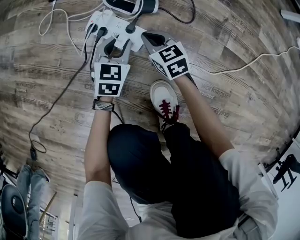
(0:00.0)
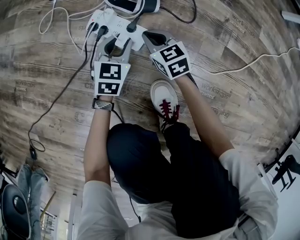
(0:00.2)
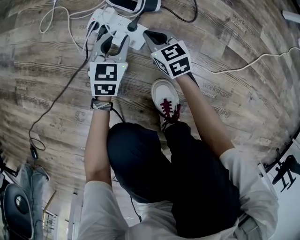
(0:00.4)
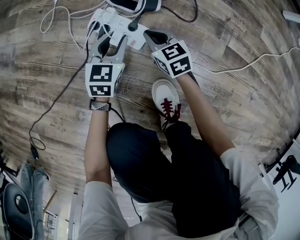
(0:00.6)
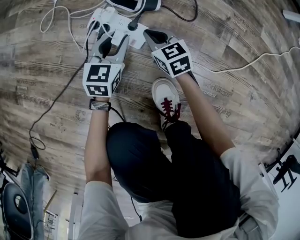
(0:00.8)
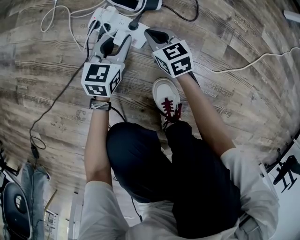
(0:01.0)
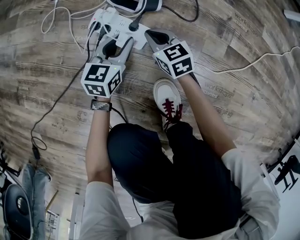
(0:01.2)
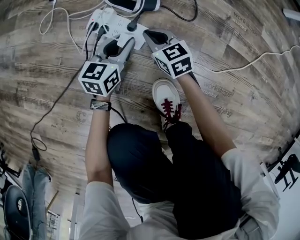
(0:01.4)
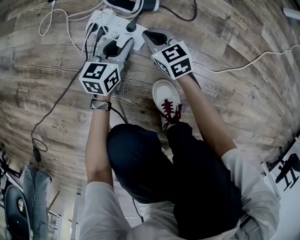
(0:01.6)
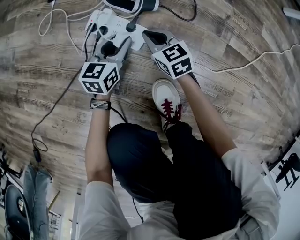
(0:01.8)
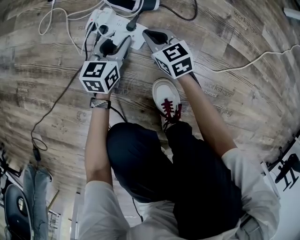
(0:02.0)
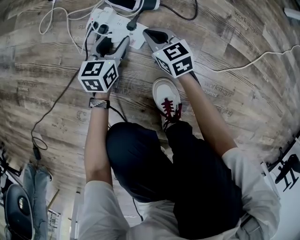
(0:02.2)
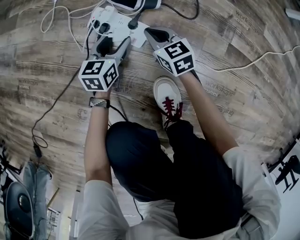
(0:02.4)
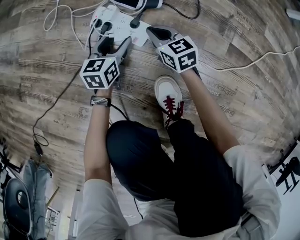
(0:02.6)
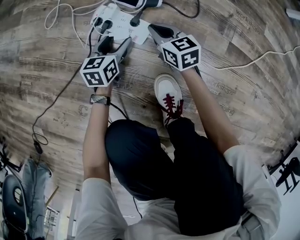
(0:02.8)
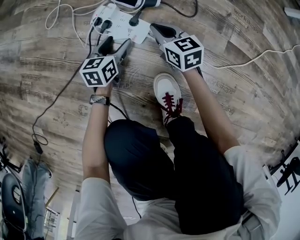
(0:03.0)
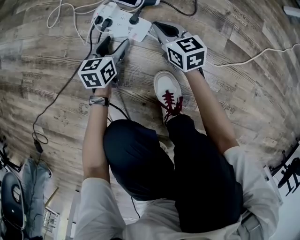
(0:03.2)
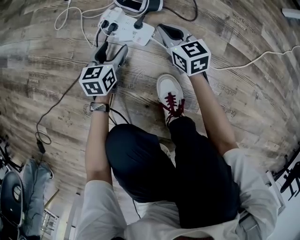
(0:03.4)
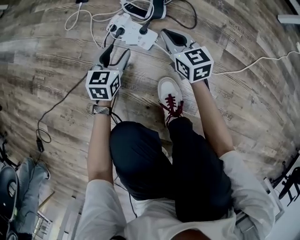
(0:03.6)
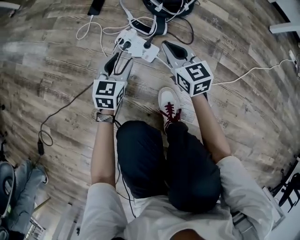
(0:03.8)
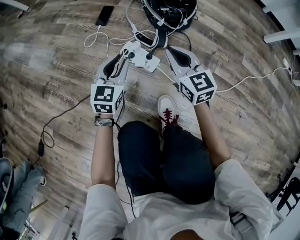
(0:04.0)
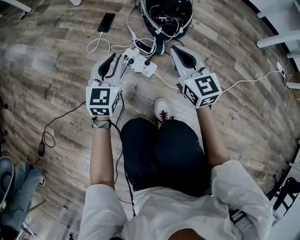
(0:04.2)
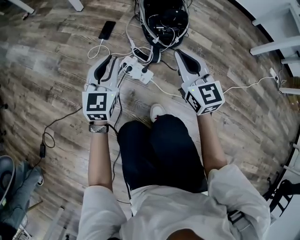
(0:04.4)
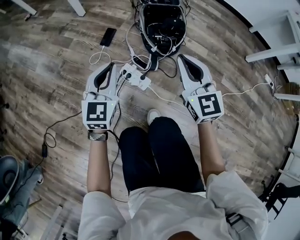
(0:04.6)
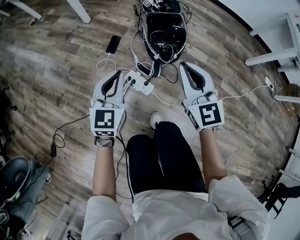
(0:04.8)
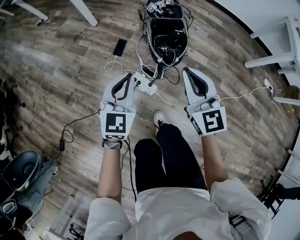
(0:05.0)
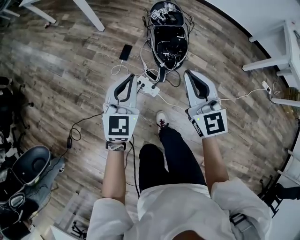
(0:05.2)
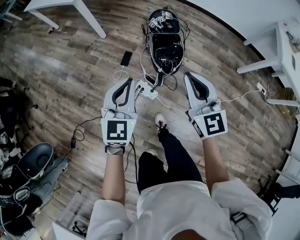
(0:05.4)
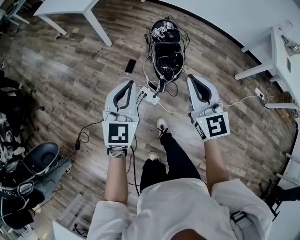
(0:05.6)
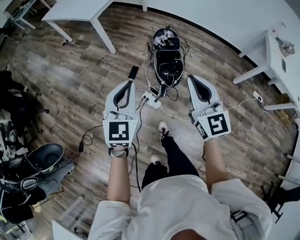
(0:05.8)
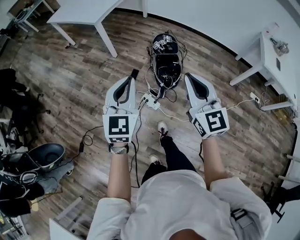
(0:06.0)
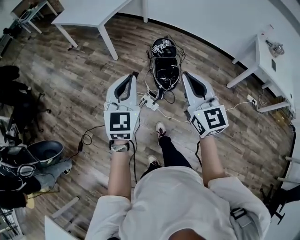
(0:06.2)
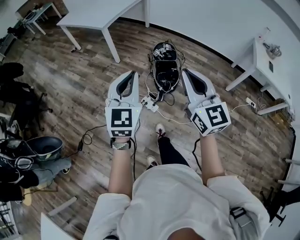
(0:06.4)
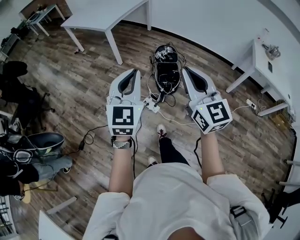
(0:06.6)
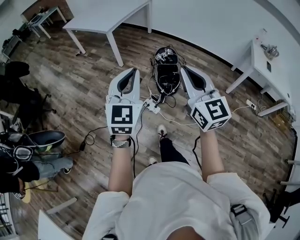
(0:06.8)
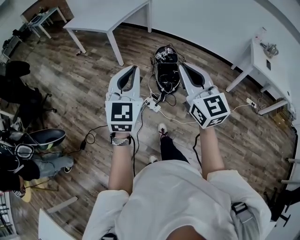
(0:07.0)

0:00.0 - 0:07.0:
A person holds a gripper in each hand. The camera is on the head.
0:00.0 - 0:01.4: The left gripper rotates roughly 30 degrees.
0:01.4 - 0:02.8: The left gripper shifts by roughly 5 cm, and opens up.
0:02.8 - 0:04.2: Both grippers travel together upward, about 35 cm. The right gripper changes its angle by about 30 degrees. The left gripper turns by approximately 40 degrees, and closes.
0:04.2 - 0:05.6: Both grippers travel together upward, about 60 cm.
0:05.6 - 0:07.0: The right gripper heads backward and upward, covering about 35 cm. Meanwhile the left gripper is displaced upward and backward by some 35 cm.

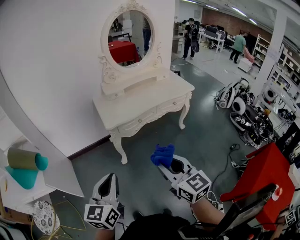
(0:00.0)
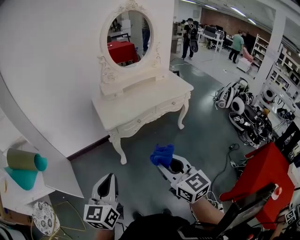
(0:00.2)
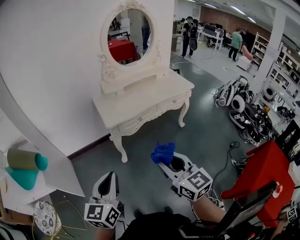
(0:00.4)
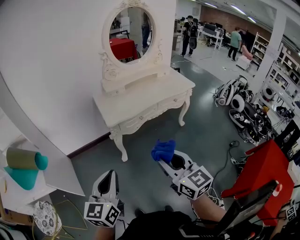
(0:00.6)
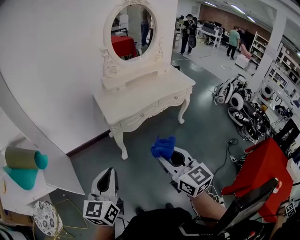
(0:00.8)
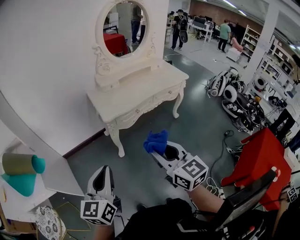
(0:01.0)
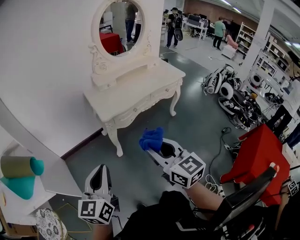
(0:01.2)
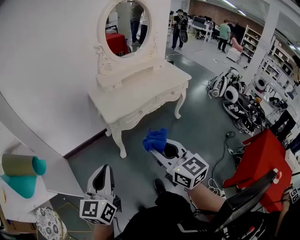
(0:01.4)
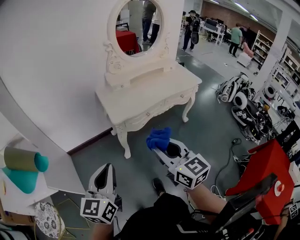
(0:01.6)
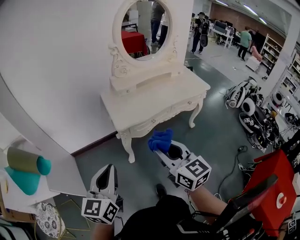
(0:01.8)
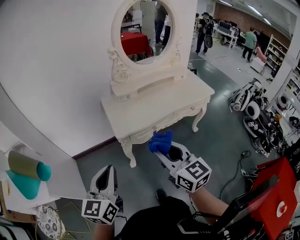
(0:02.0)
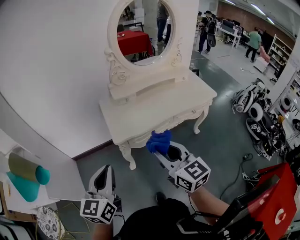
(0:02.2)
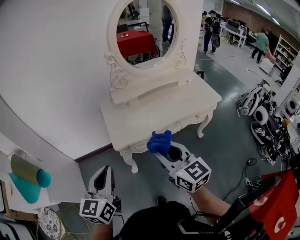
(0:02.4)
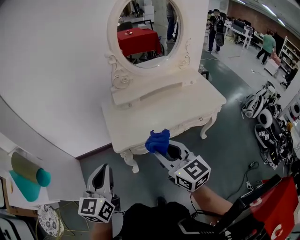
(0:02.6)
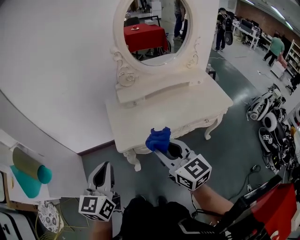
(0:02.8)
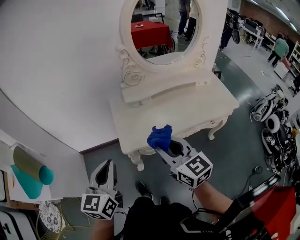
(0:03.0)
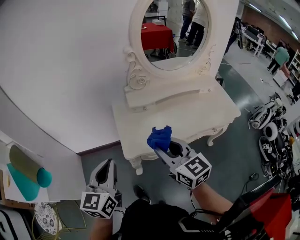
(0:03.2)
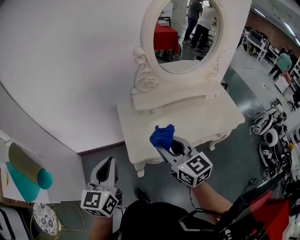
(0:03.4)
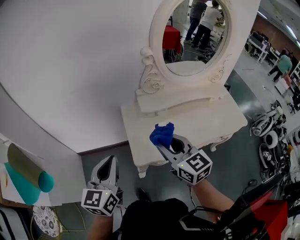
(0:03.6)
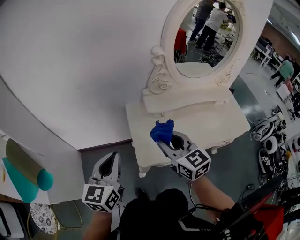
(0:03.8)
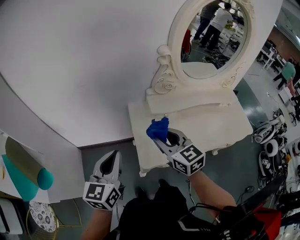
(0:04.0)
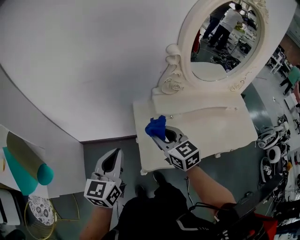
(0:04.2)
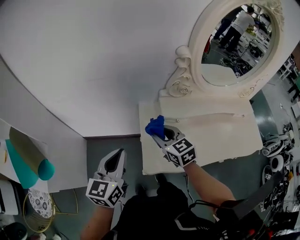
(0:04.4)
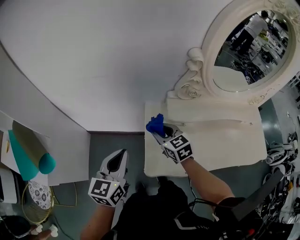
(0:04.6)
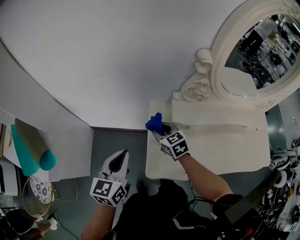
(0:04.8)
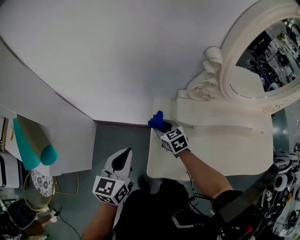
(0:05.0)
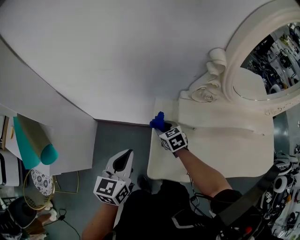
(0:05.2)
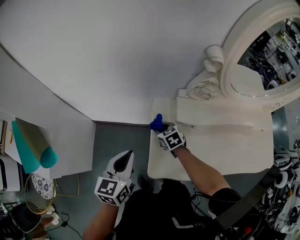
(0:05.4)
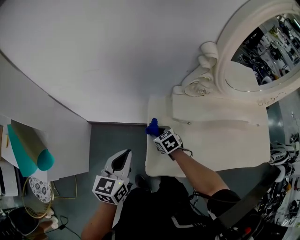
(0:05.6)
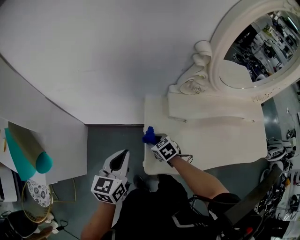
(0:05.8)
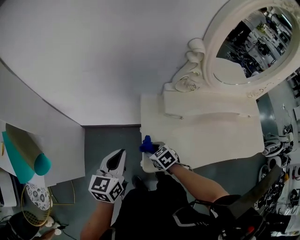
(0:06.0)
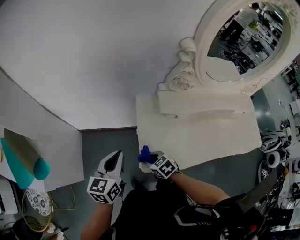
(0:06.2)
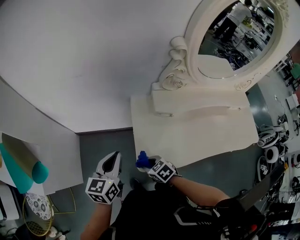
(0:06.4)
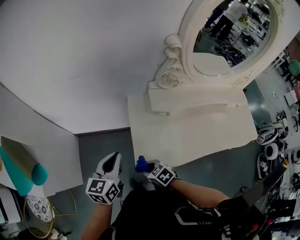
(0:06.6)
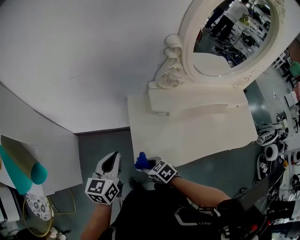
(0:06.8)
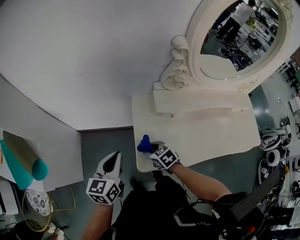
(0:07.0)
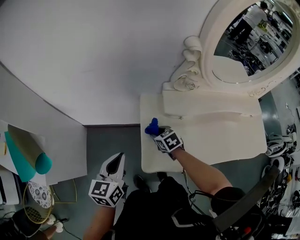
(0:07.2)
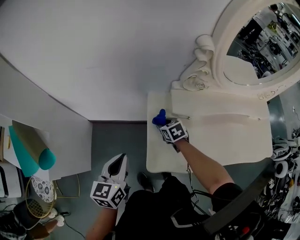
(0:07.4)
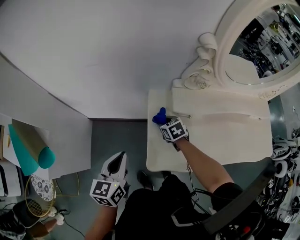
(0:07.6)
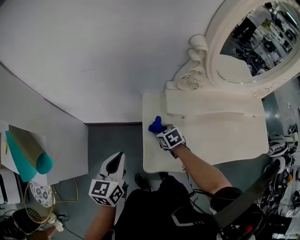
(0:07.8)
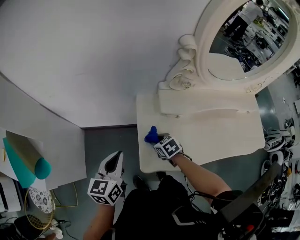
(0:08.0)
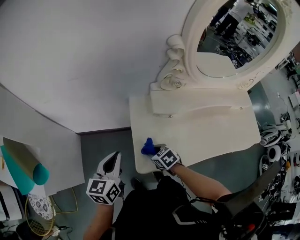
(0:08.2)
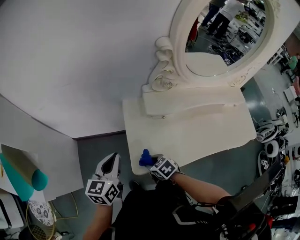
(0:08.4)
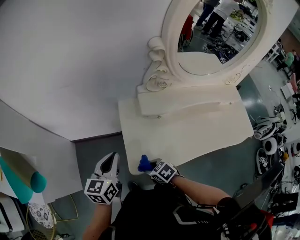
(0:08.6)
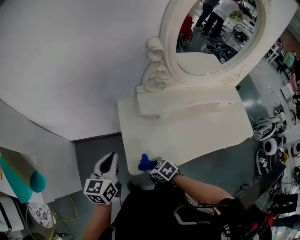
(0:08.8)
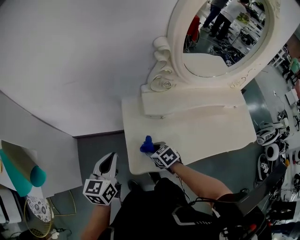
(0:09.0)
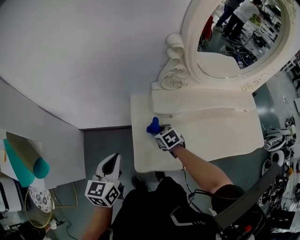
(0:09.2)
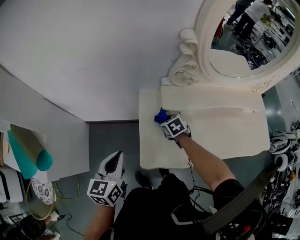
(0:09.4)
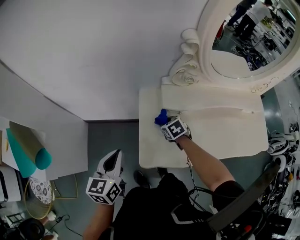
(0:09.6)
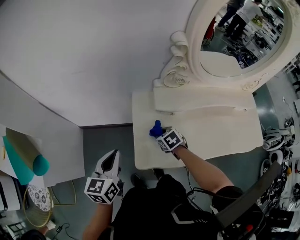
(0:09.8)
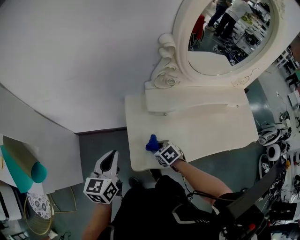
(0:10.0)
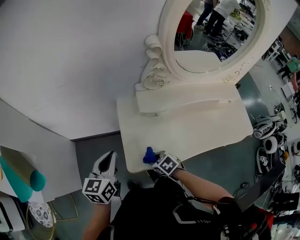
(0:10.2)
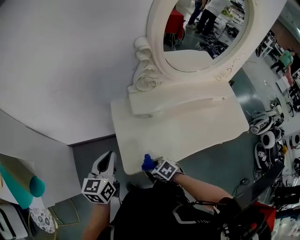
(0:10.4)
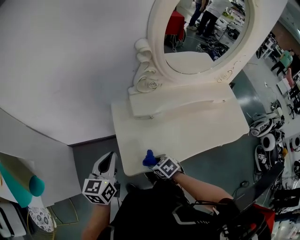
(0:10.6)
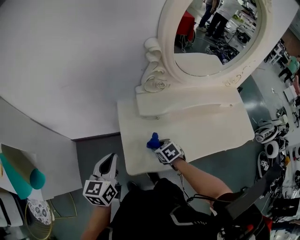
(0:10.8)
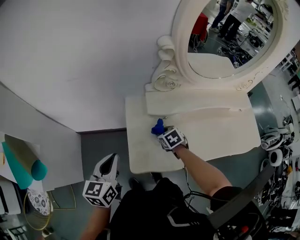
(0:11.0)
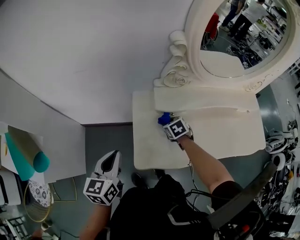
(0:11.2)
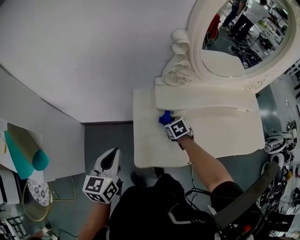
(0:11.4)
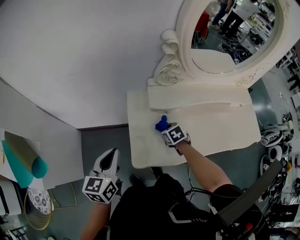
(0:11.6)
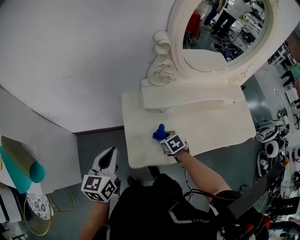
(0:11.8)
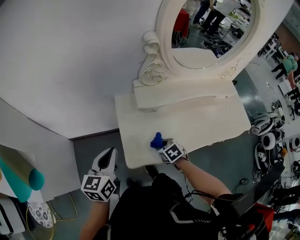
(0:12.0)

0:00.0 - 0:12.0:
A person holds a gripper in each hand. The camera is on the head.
0:00.0 - 0:01.6: The left gripper shifts about 10 cm to the left and forward. Meanwhile the right gripper heads forward and to the left, covering about 15 cm.
0:01.6 - 0:03.0: Both grippers move forward, about 30 cm.
0:03.0 - 0:04.4: The left gripper heads forward, covering roughly 20 cm, while the right gripper moves forward, to the left and downward, some 35 cm, and changes its angle by some 20 degrees.
0:04.4 - 0:06.0: The left gripper heads downward, covering roughly 10 cm, while the right gripper travels downward by roughly 20 cm, and turns by some 30 degrees.
0:06.0 - 0:07.6: The right gripper shifts roughly 15 cm forward and to the right.
0:07.6 - 0:09.0: The right gripper moves backward, some 15 cm.
0:09.0 - 0:10.4: The right gripper goes about 10 cm backward.
0:10.4 - 0:12.0: The right gripper moves to the right, roughly 5 cm, and travels forward and back again, approximately 20 cm each way.

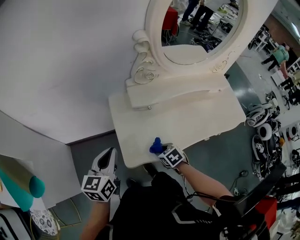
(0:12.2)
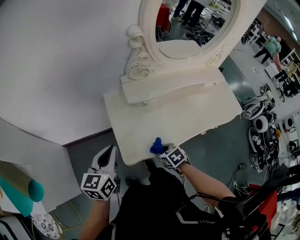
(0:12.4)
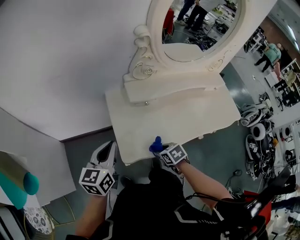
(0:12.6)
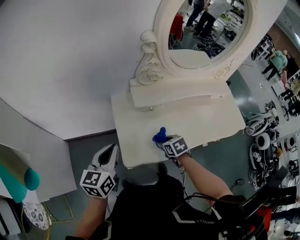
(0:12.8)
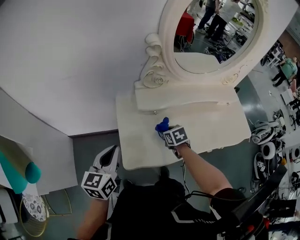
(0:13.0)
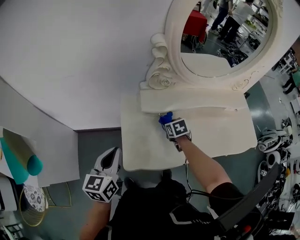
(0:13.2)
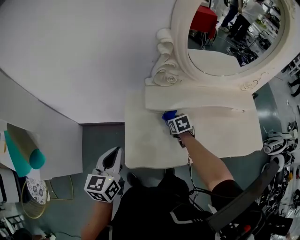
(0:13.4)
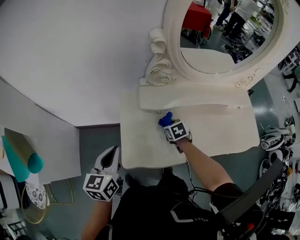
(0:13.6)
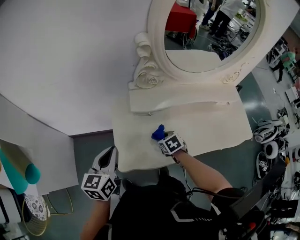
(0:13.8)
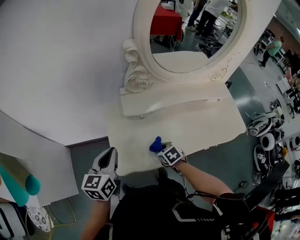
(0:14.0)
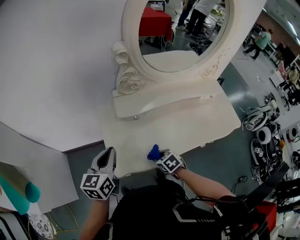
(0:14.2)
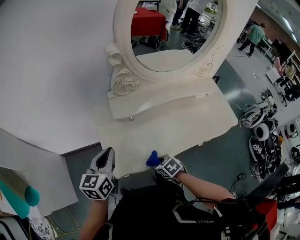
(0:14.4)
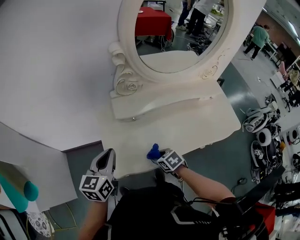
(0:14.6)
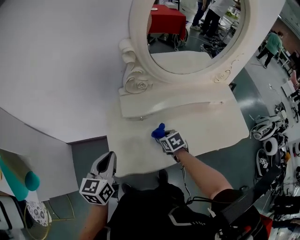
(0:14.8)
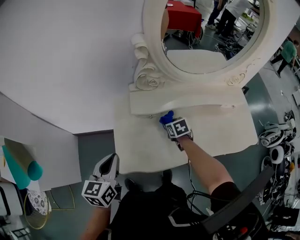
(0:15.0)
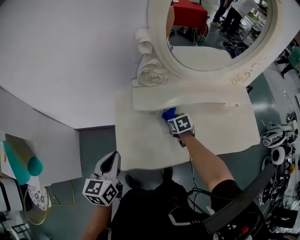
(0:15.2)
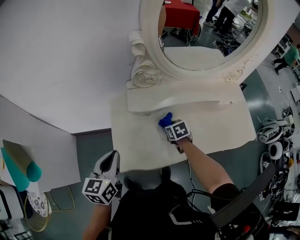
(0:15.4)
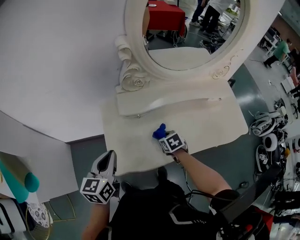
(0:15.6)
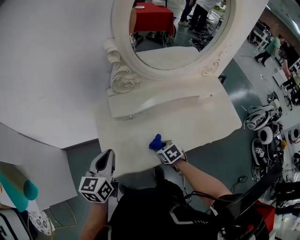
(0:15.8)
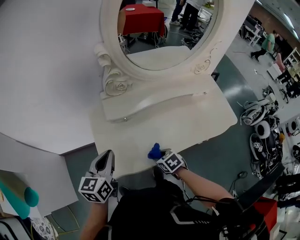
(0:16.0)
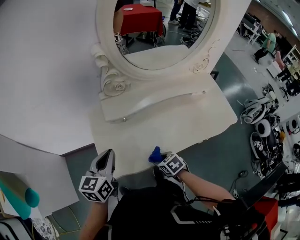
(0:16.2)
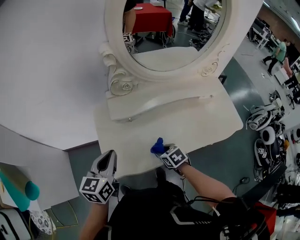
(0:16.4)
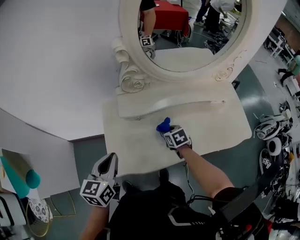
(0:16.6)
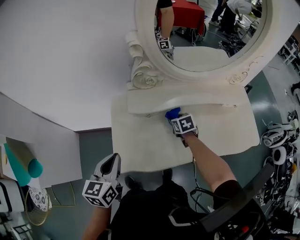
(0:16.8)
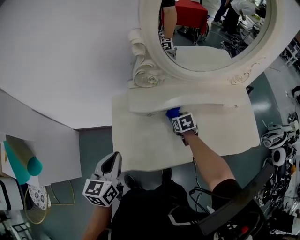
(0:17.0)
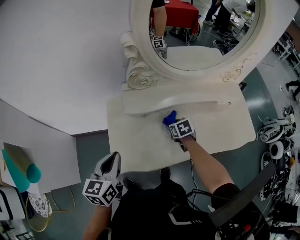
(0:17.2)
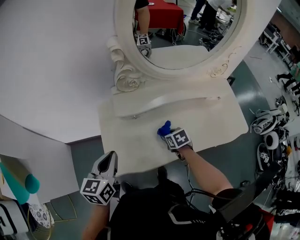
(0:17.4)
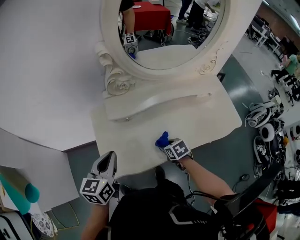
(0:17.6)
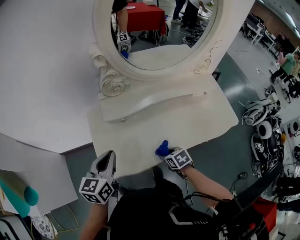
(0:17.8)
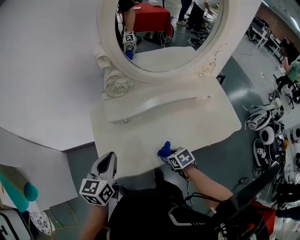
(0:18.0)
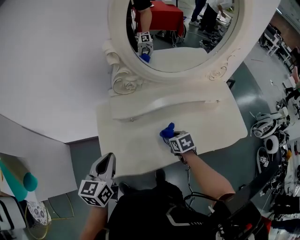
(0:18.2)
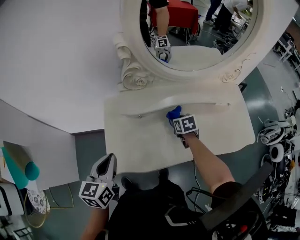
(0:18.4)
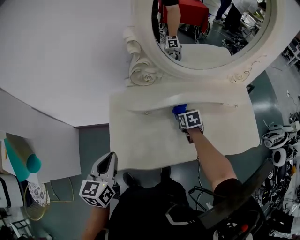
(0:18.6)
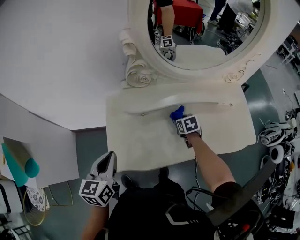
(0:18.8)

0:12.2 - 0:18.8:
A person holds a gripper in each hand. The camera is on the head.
0:12.2 - 0:13.8: The right gripper travels forward and to the right by roughly 10 cm.
0:13.8 - 0:15.4: The right gripper moves forward and backward over roughly 25 cm, changing direction 2 times.
0:15.4 - 0:17.2: The right gripper goes forward and backward, about 25 cm each way, reversing 2 times.
0:17.2 - 0:18.8: The right gripper travels backward and back again, roughly 20 cm each way.
